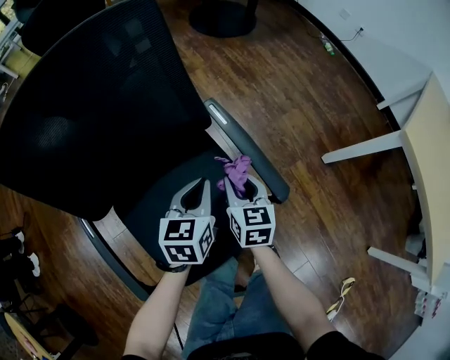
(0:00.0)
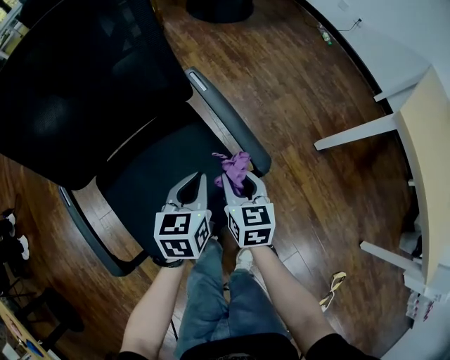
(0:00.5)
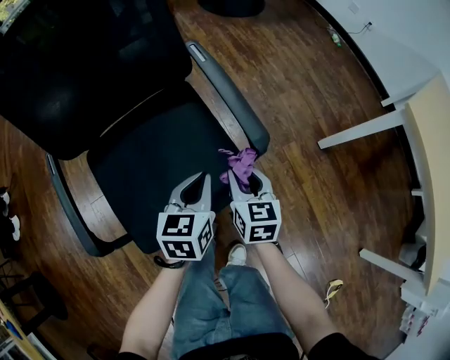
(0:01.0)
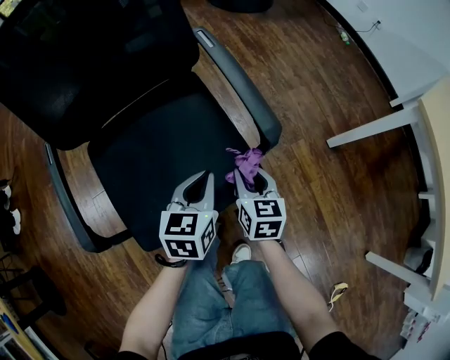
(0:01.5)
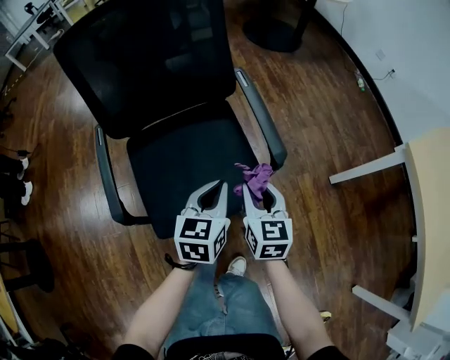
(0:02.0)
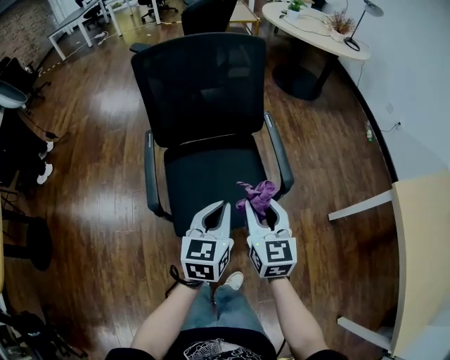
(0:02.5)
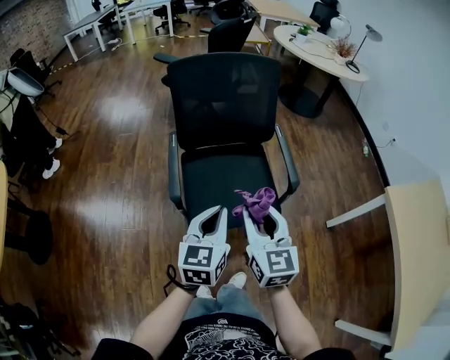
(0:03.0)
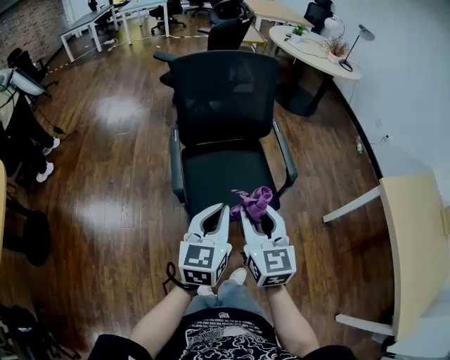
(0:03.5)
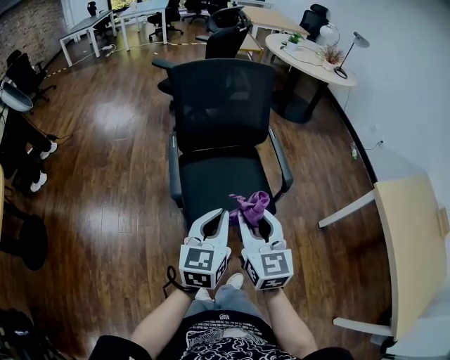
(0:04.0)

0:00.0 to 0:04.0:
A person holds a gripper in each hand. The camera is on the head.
0:00.0 to 0:02.0: The two grippers go some 15 cm backward.
0:02.0 to 0:04.0: The grippers both shift upward, backward and to the left by some 35 cm. The right gripper changes its angle by about 20 degrees.

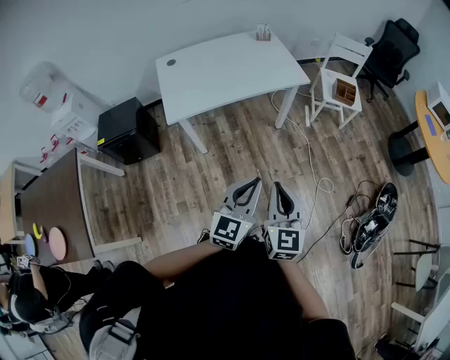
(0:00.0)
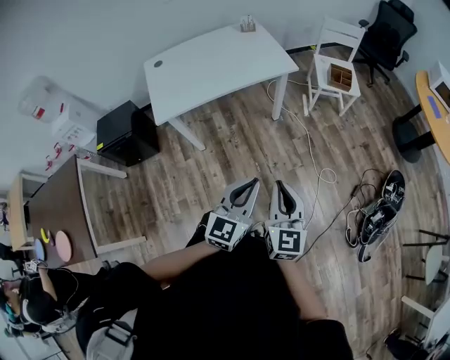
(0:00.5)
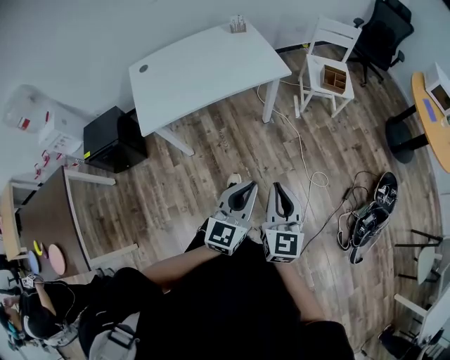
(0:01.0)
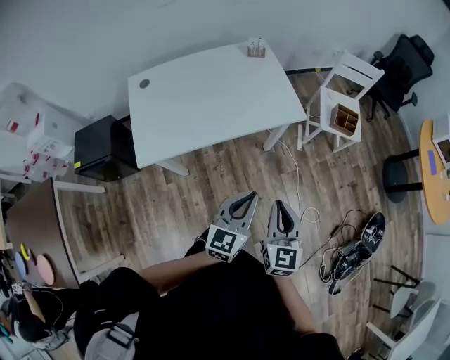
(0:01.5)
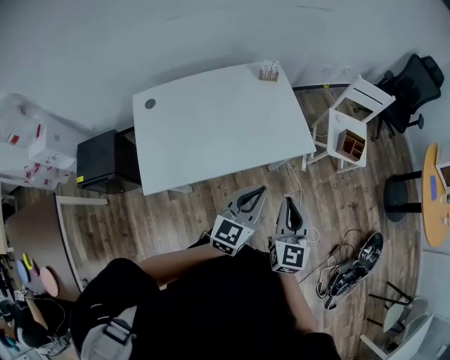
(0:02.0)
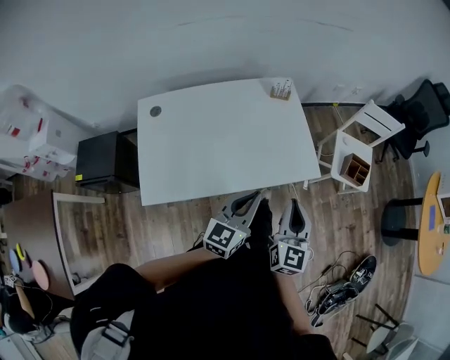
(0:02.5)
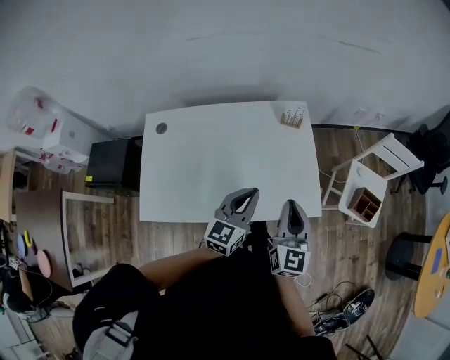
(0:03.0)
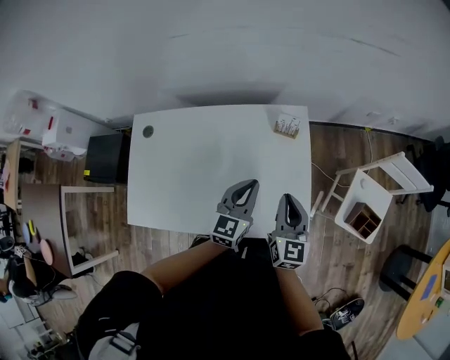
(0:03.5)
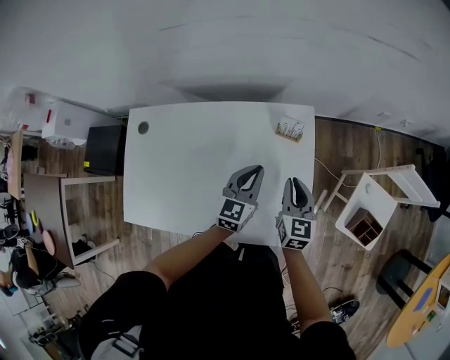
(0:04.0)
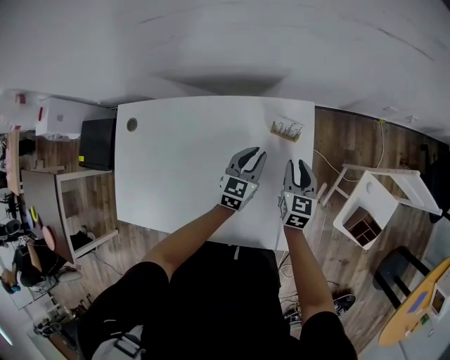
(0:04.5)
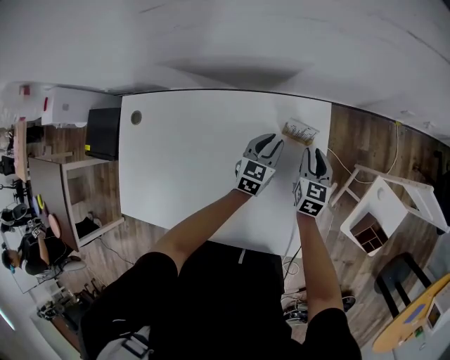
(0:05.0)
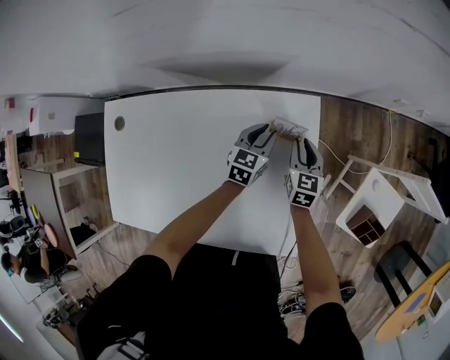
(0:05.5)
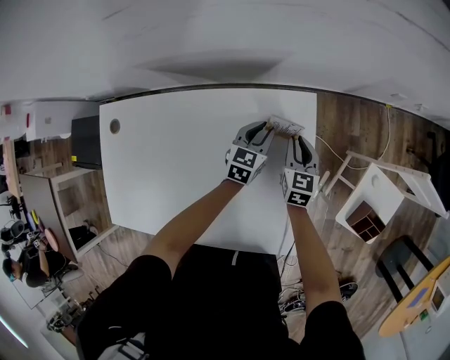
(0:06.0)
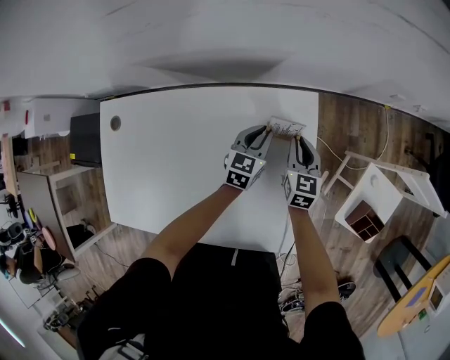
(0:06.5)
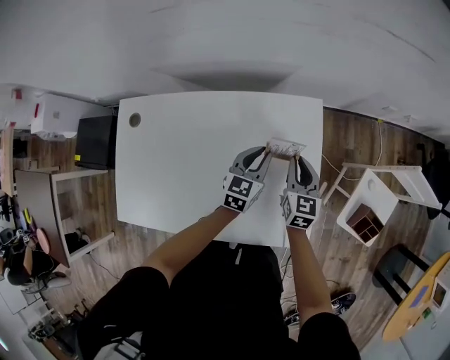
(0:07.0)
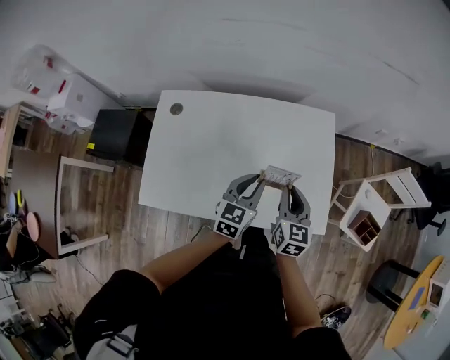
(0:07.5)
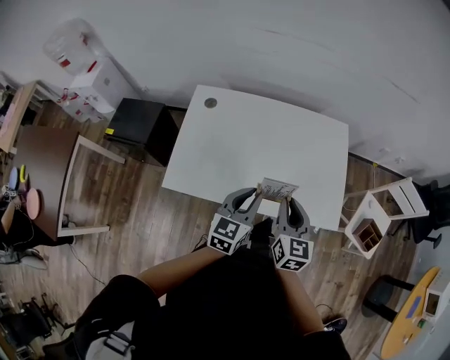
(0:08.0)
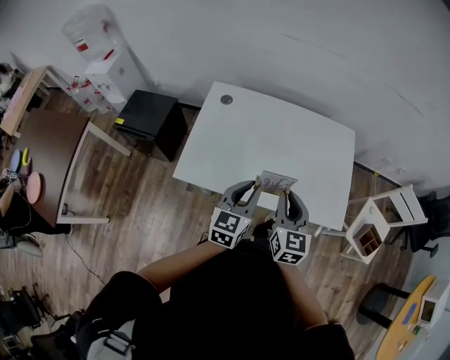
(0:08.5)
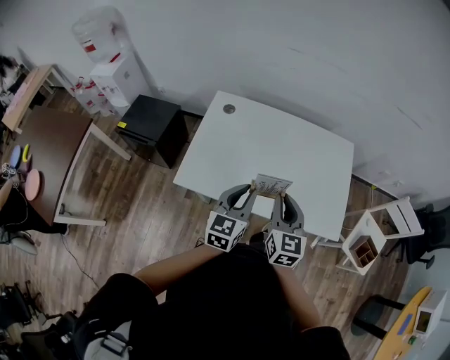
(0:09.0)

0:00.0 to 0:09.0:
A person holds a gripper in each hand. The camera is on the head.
0:00.0 to 0:02.0: Both grippers are carried forward, some 40 cm.
0:02.0 to 0:04.5: Both grippers are carried forward, some 60 cm. Both grippers travel together downward, roughly 25 cm. The left gripper swivels approximately 30 degrees. The right gripper rotates approximately 30 degrees.
0:04.5 to 0:07.0: The right gripper goes forward and returns, some 10 cm each way; the left gripper goes forward and returns, about 10 cm each way.
0:07.0 to 0:09.0: Both grippers are carried backward and to the left, roughly 50 cm. Both grippers move upward, about 20 cm. The left gripper swivels approximately 20 degrees.

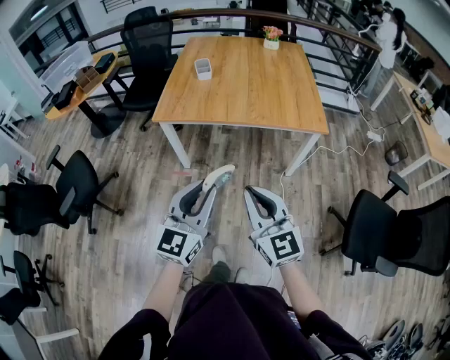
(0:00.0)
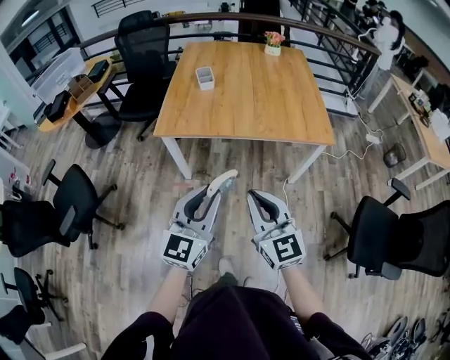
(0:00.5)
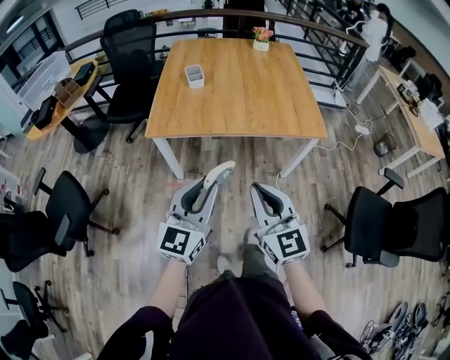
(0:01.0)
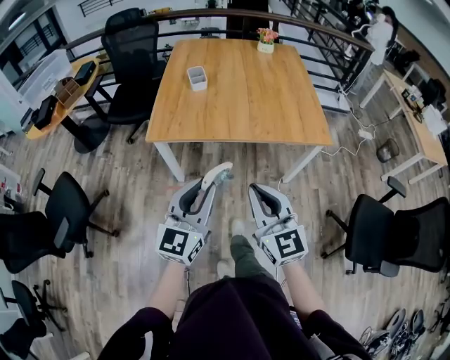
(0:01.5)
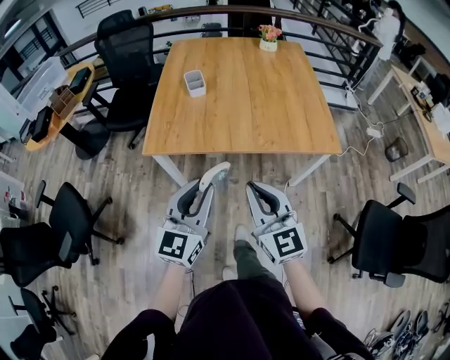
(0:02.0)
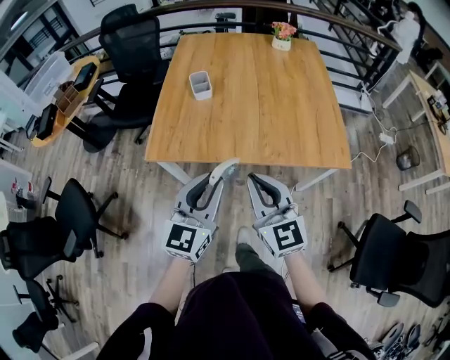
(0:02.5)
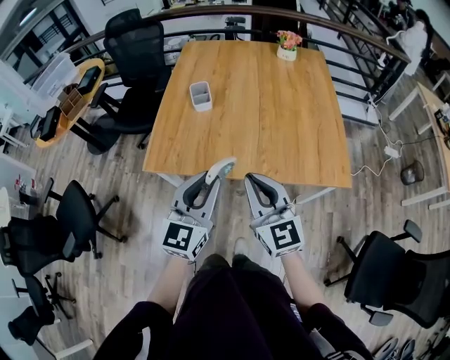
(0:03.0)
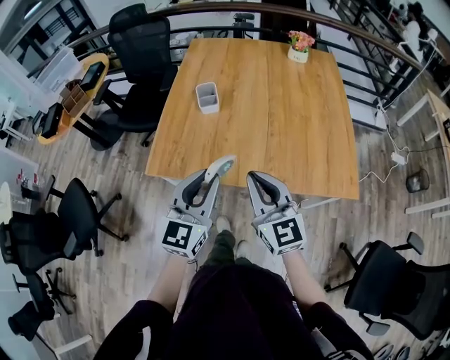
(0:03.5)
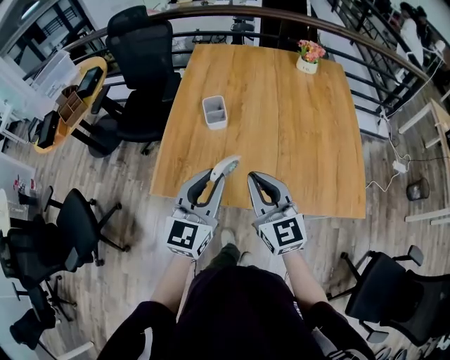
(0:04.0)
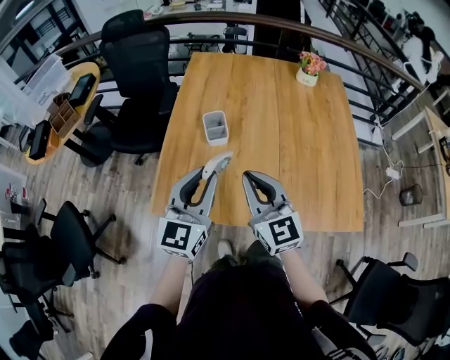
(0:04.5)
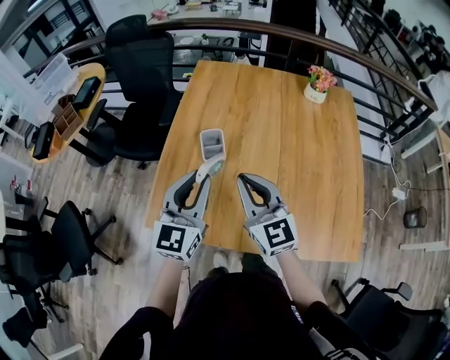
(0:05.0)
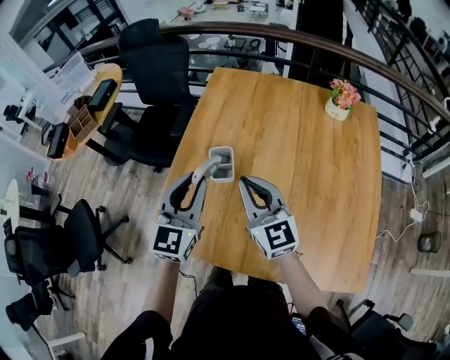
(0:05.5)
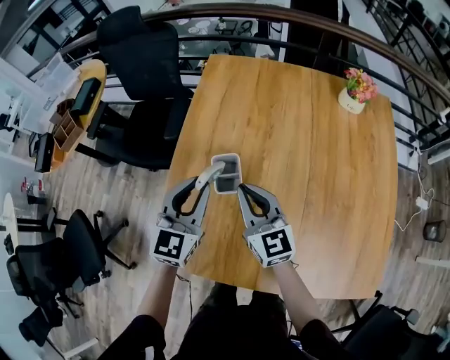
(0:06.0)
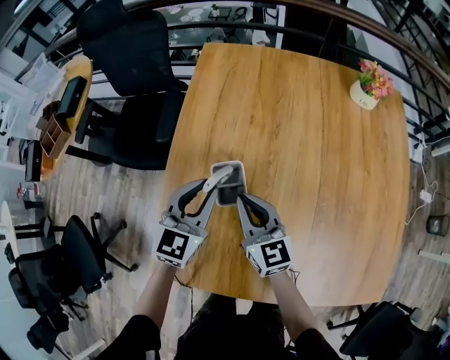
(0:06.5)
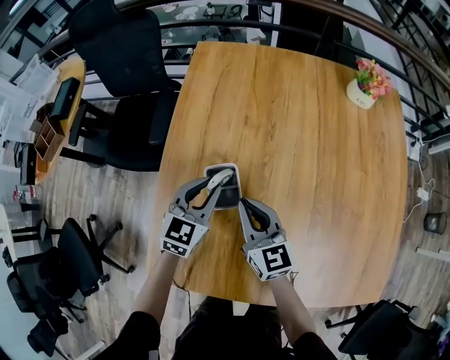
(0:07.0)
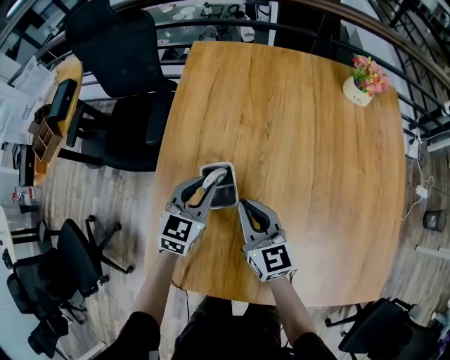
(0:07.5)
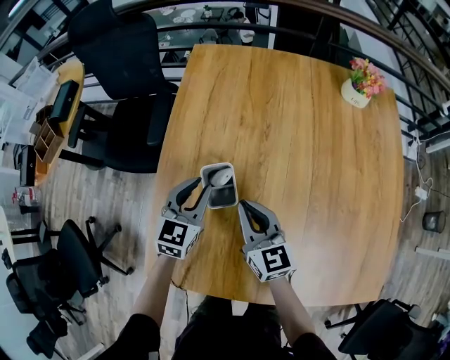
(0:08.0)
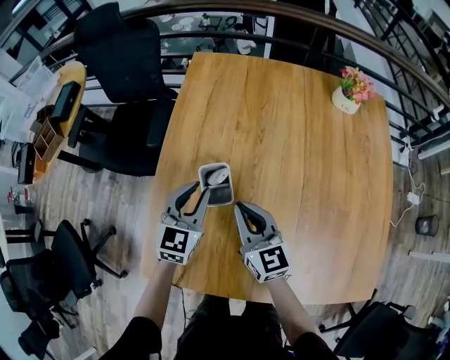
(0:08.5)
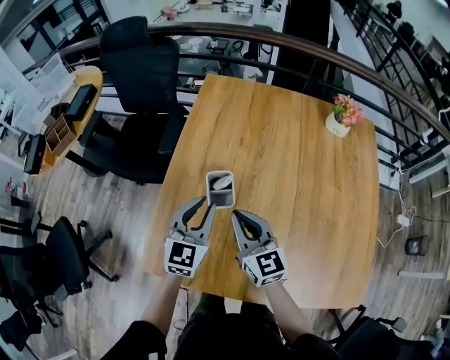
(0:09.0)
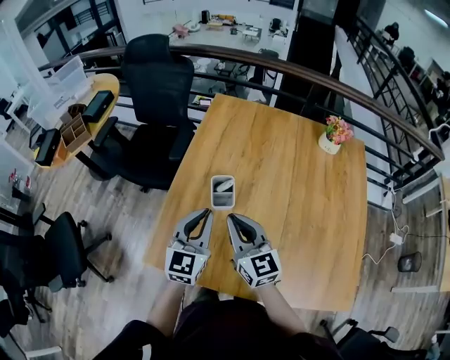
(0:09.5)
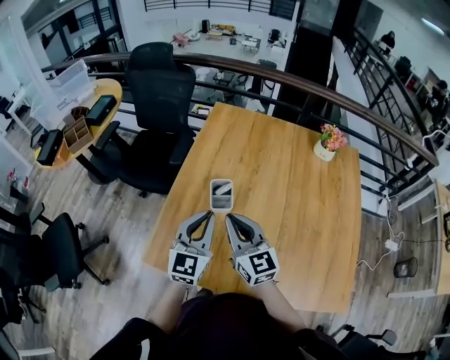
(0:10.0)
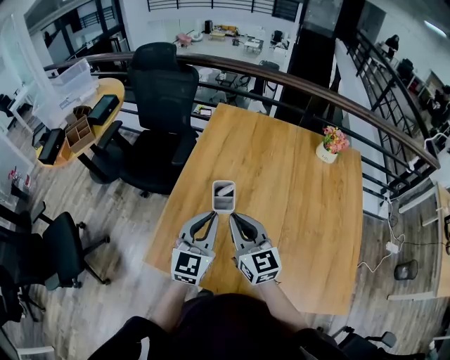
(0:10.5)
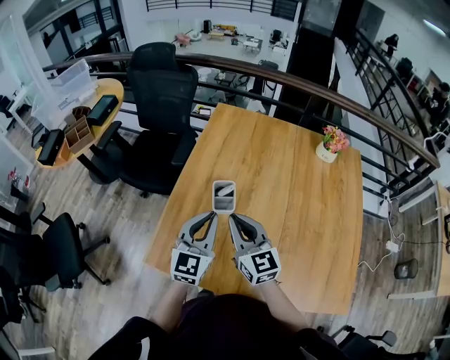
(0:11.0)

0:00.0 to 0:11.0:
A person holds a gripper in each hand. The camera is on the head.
0:00.0 to 0:02.0: Both grippers move forward, about 25 cm.
0:02.0 to 0:03.5: Both grippers move forward, some 25 cm.
0:03.5 to 0:05.5: The two grippers go about 40 cm forward.
0:05.5 to 0:07.5: The two grippers go some 30 cm downward and forward. The left gripper rotates about 30 degrees.
0:07.5 to 0:09.0: Both grippers travel together upward and backward, roughly 15 cm.
0:09.0 to 0:11.0: The right gripper is displaced upward and backward by about 10 cm; the left gripper moves backward and upward, about 15 cm.

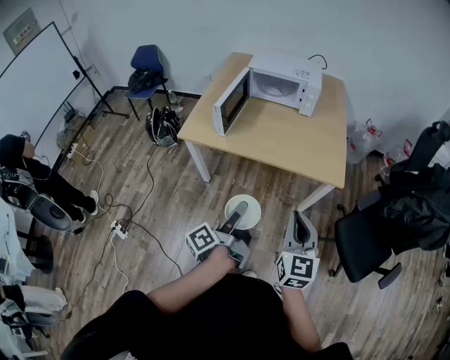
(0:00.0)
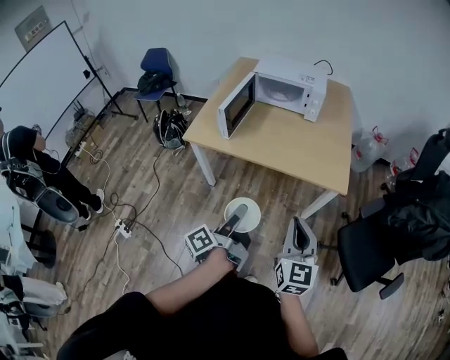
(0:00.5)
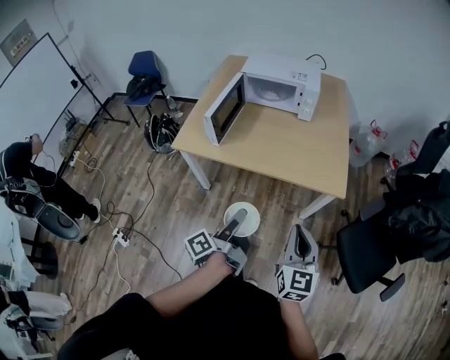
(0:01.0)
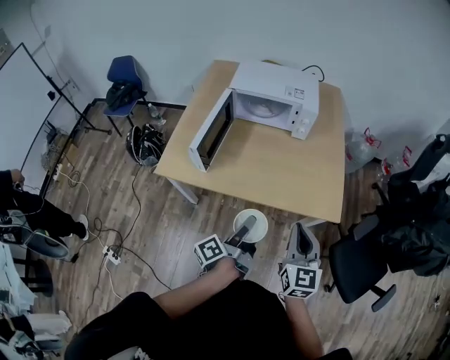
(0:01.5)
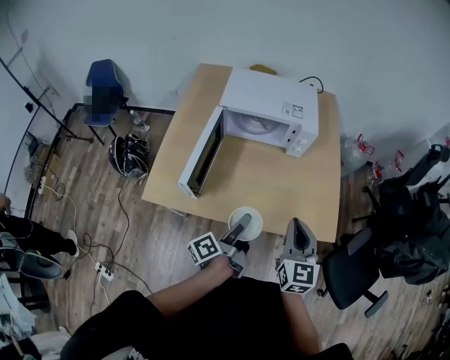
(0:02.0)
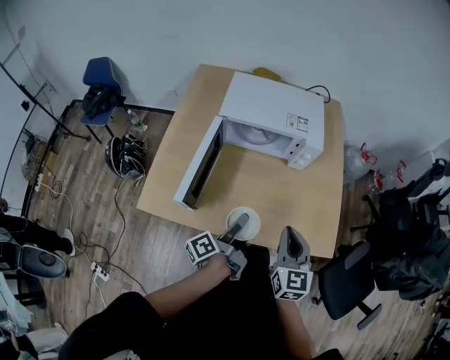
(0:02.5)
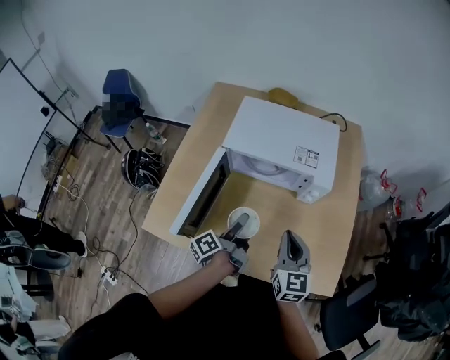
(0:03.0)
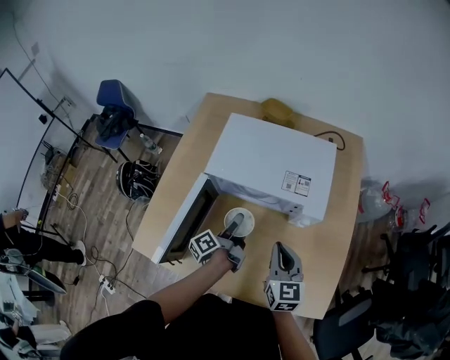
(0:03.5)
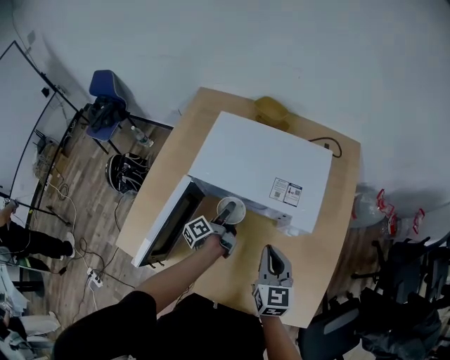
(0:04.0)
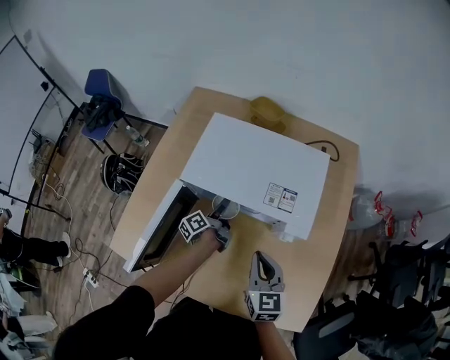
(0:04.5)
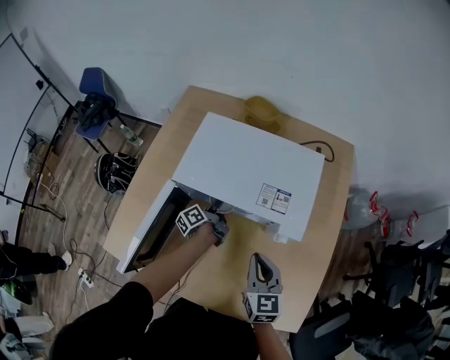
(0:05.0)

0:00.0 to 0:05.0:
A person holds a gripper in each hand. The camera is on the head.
0:00.0 to 0:02.5: Both grippers move forward, approximately 40 cm.
0:02.5 to 0:05.0: The left gripper shifts some 40 cm forward and downward, while the right gripper moves forward, some 25 cm.
